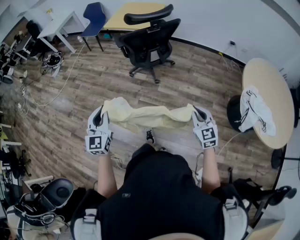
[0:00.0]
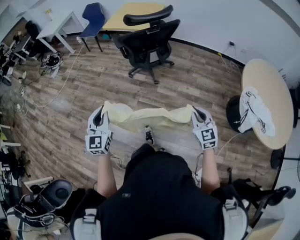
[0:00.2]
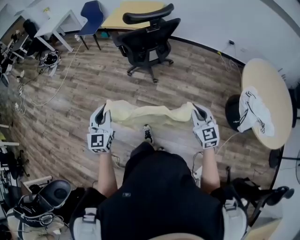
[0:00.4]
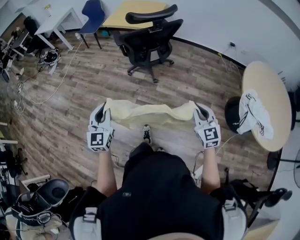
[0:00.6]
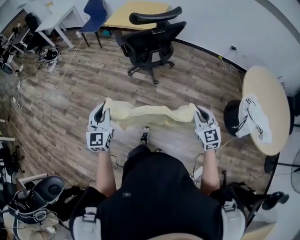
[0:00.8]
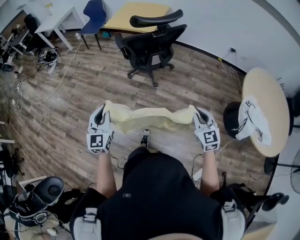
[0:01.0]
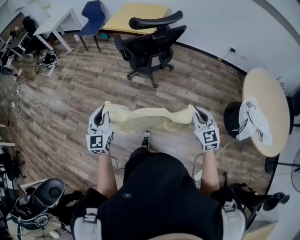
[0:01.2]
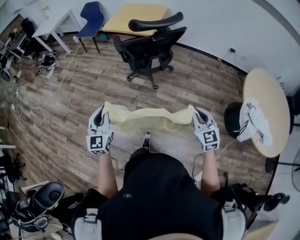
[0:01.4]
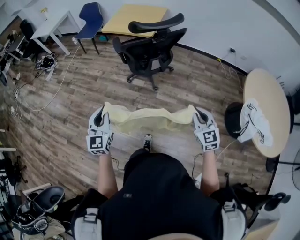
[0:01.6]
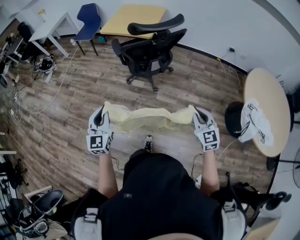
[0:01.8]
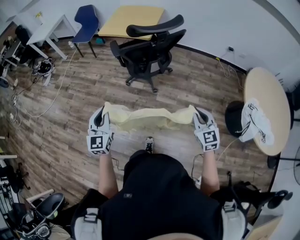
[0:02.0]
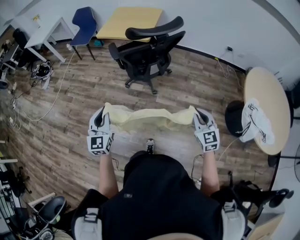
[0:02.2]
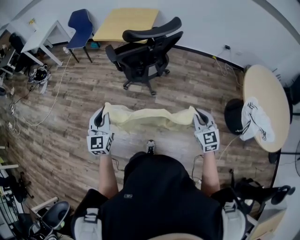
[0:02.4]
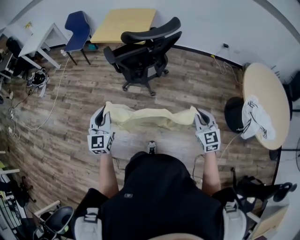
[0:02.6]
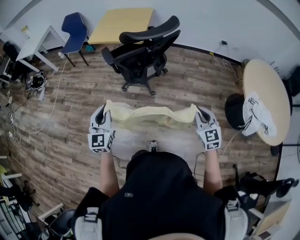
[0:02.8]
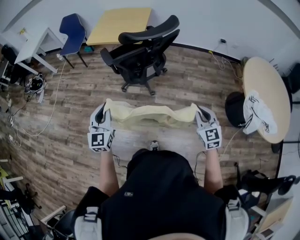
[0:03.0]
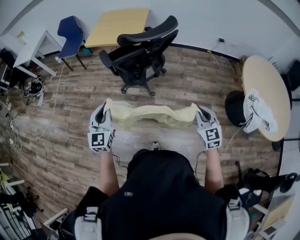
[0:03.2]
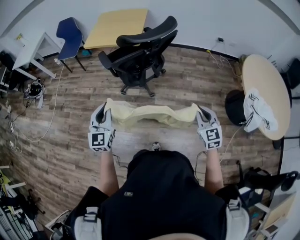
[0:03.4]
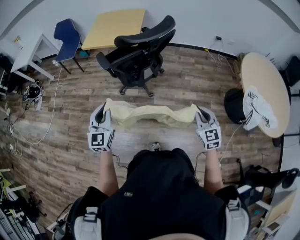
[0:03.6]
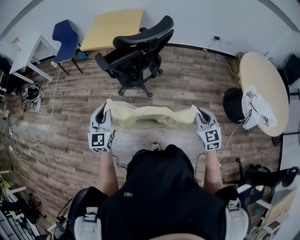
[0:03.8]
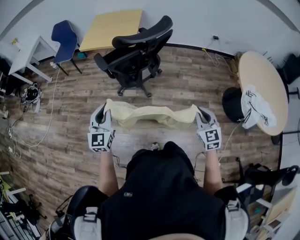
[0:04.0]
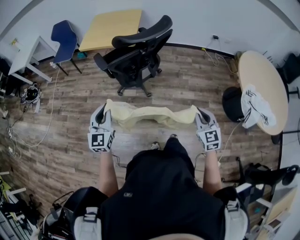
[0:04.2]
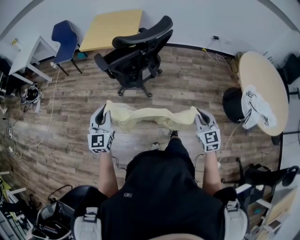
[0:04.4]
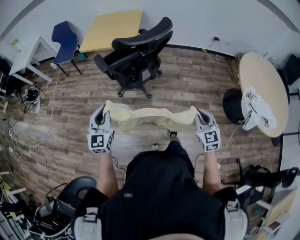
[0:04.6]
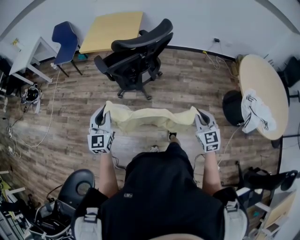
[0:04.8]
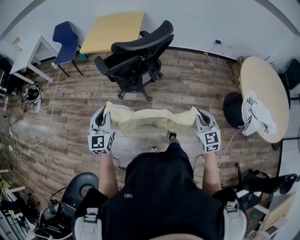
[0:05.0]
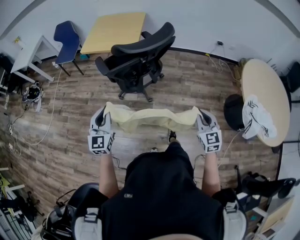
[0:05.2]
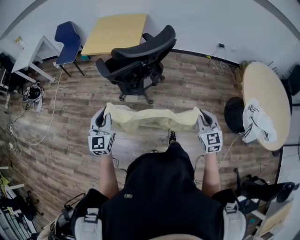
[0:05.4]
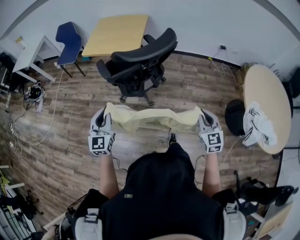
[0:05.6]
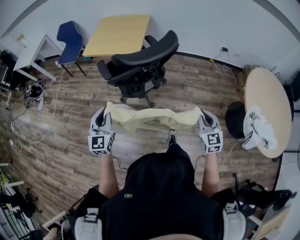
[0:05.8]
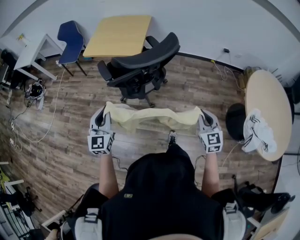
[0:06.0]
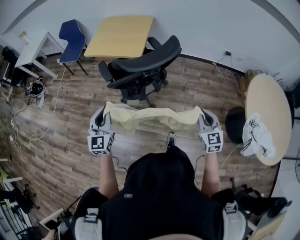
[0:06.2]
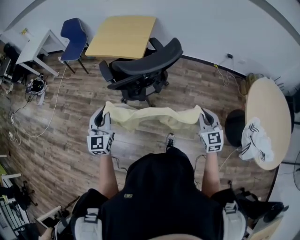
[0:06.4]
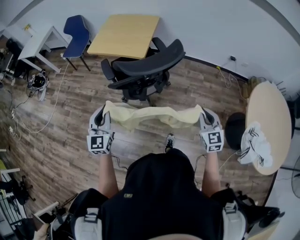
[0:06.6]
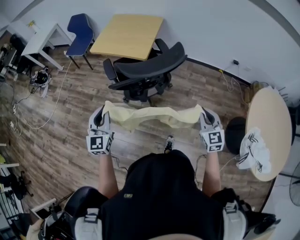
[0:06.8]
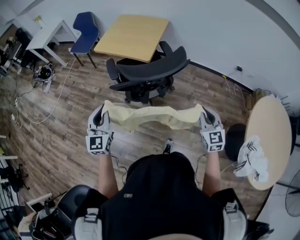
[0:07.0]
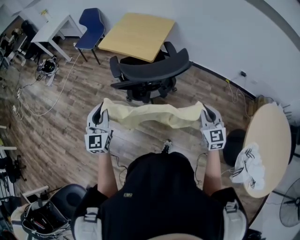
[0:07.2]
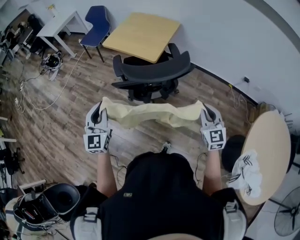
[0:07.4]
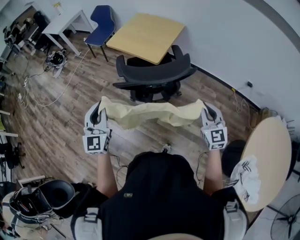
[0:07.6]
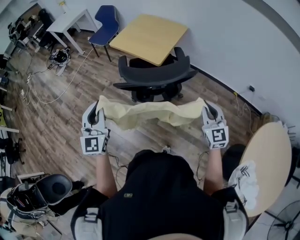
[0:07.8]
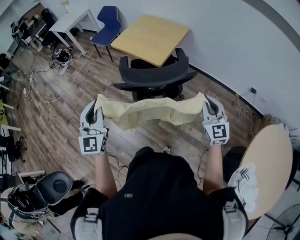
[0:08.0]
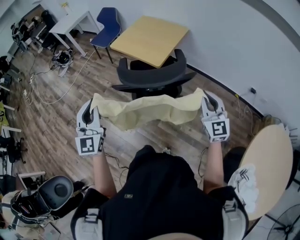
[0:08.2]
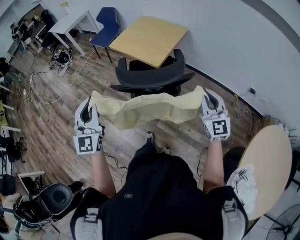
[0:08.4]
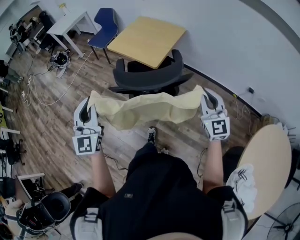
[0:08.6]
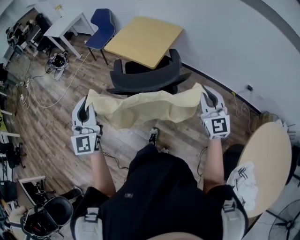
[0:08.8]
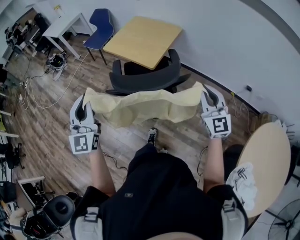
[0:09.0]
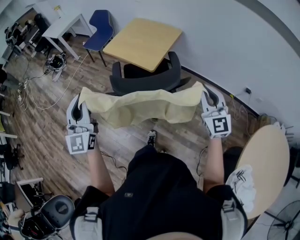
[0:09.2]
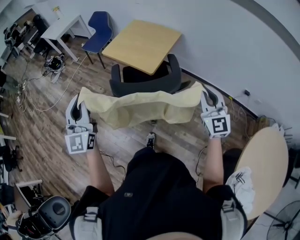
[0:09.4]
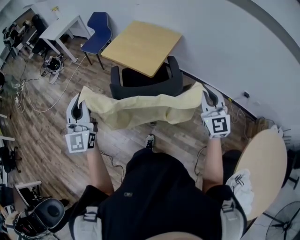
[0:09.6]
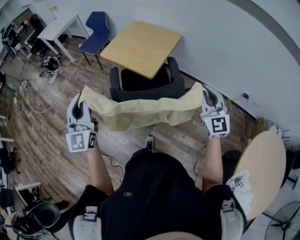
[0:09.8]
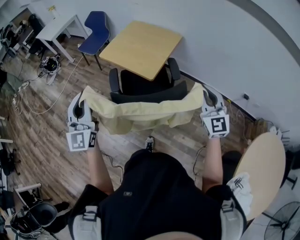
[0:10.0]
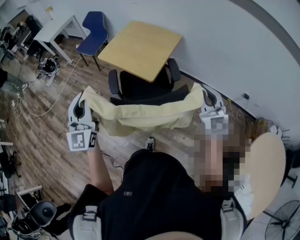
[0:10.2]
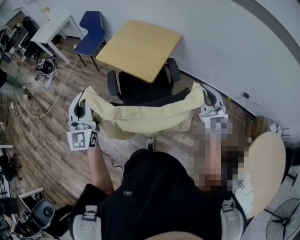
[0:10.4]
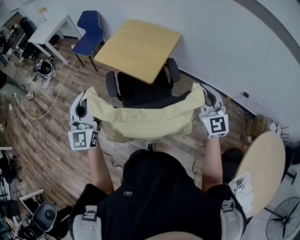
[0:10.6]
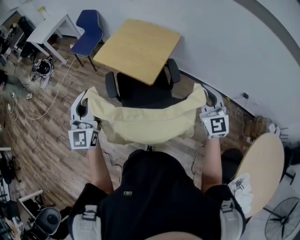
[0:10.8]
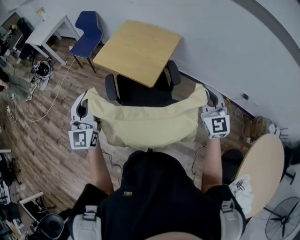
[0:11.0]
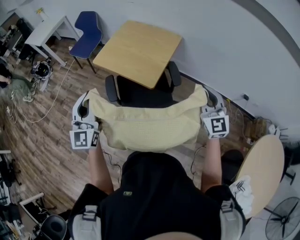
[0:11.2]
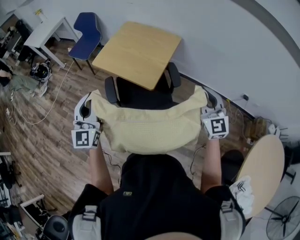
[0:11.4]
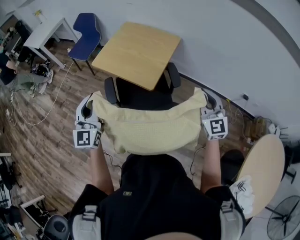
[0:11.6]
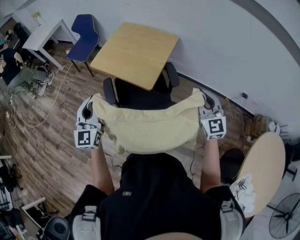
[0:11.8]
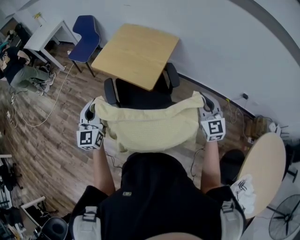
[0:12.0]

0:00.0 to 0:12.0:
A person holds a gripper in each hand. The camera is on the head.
0:00.0 to 0:01.6: Both grippers move forward, some 10 cm.
0:01.6 to 0:03.0: The right gripper travels forward by about 10 cm, while the left gripper travels forward by approximately 15 cm.
0:03.0 to 0:04.4: The grippers move only a little.
0:04.4 to 0:06.0: Both grippers travel together forward, about 15 cm.
0:06.0 to 0:07.6: The right gripper shifts approximately 15 cm forward, and changes its angle by roughly 20 degrees. The left gripper goes some 10 cm upward and to the right, and turns by approximately 20 degrees.
0:07.6 to 0:09.0: The left gripper travels upward by some 10 cm, while the right gripper is displaced upward and forward by about 15 cm.
0:09.0 to 0:10.4: The grippers both shift forward by some 15 cm.
0:10.4 to 0:12.0: The left gripper goes about 15 cm downward and forward. Meanwhile the right gripper heads downward and forward, covering about 10 cm.

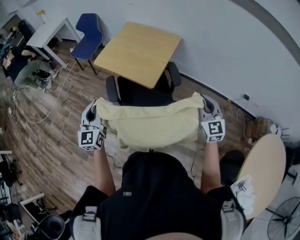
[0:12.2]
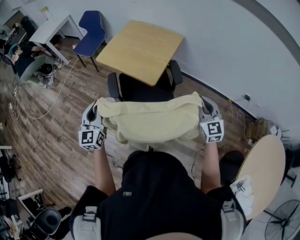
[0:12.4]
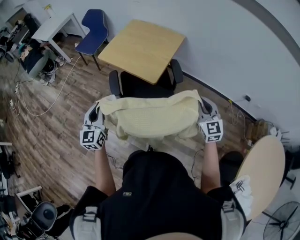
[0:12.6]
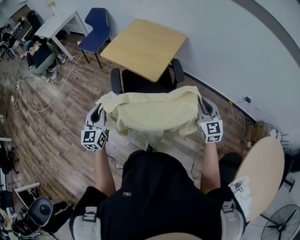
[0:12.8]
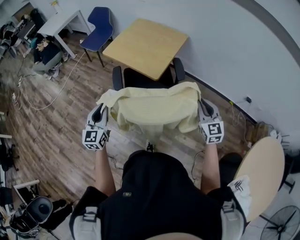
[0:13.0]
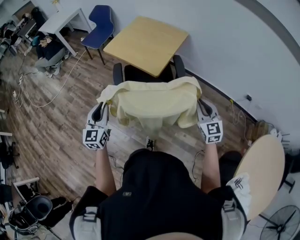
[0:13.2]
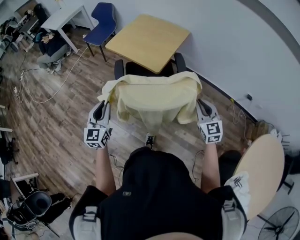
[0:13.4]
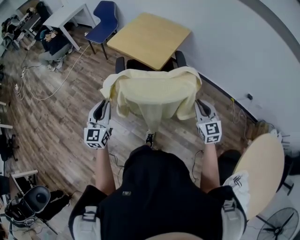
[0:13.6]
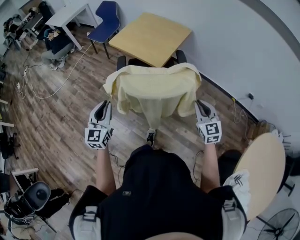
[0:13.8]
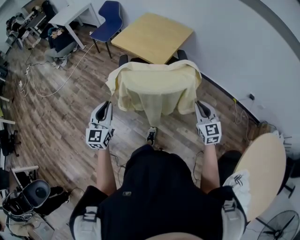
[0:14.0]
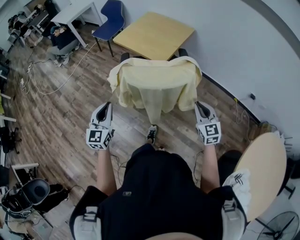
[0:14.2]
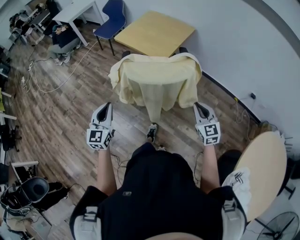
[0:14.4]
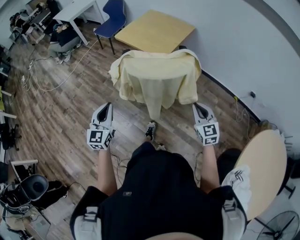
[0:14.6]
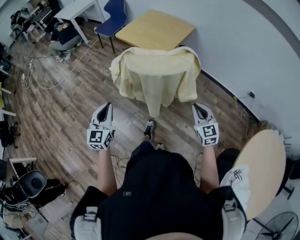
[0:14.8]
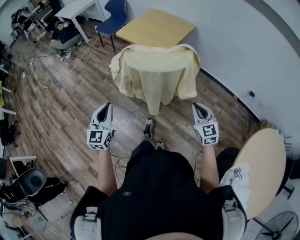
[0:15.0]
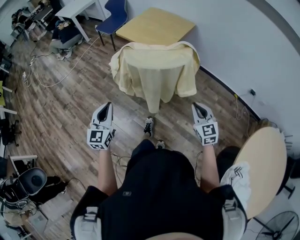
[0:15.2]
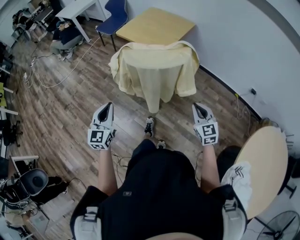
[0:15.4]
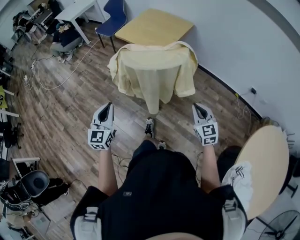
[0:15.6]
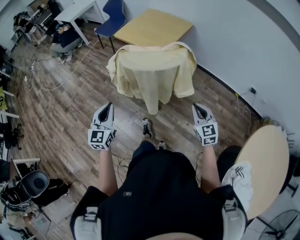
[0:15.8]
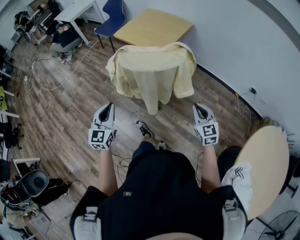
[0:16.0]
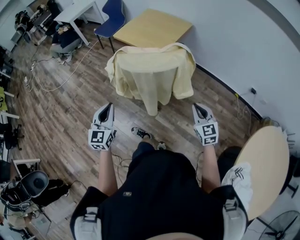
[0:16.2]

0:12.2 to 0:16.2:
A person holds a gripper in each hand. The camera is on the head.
0:12.2 to 0:13.6: The two grippers go approximately 15 cm backward.
0:13.6 to 0:14.8: Both grippers travel together backward, approximately 15 cm.
0:14.8 to 0:16.2: The grippers stay close to where they were, moving slightly.

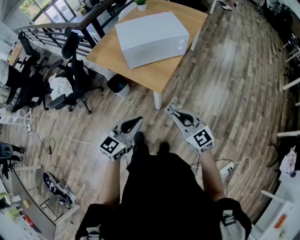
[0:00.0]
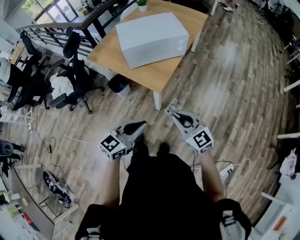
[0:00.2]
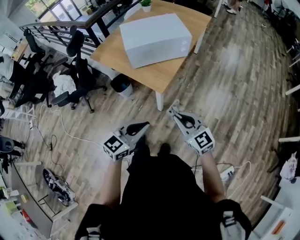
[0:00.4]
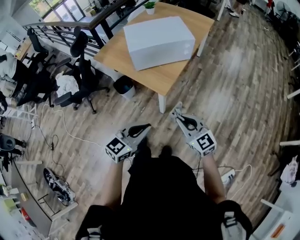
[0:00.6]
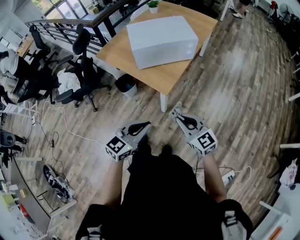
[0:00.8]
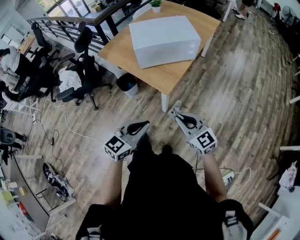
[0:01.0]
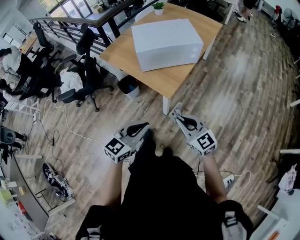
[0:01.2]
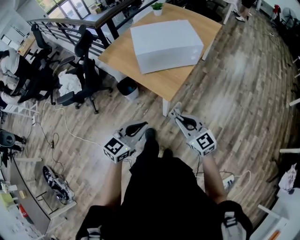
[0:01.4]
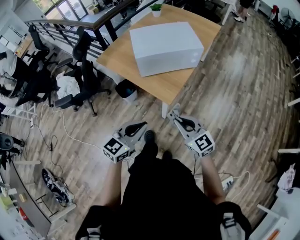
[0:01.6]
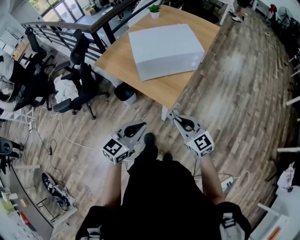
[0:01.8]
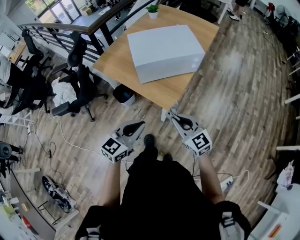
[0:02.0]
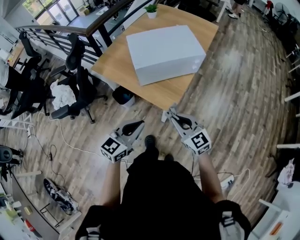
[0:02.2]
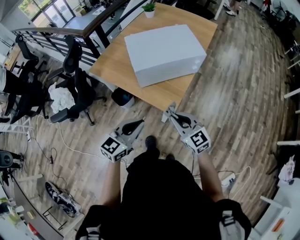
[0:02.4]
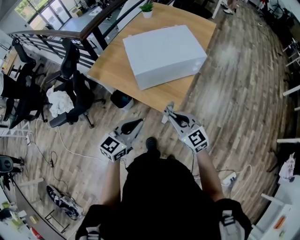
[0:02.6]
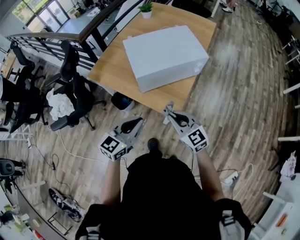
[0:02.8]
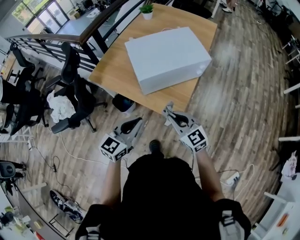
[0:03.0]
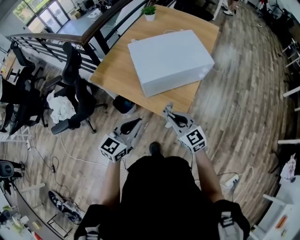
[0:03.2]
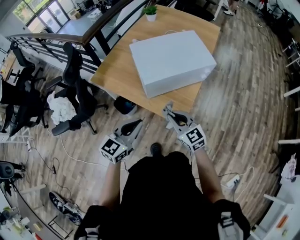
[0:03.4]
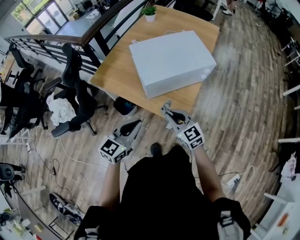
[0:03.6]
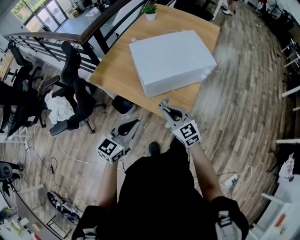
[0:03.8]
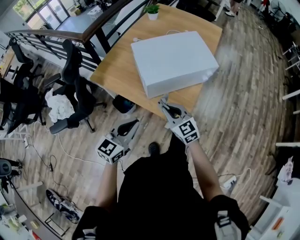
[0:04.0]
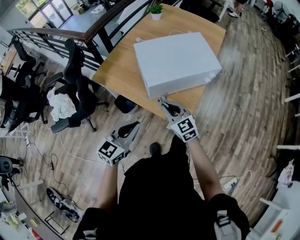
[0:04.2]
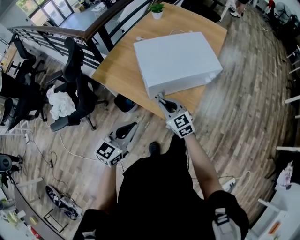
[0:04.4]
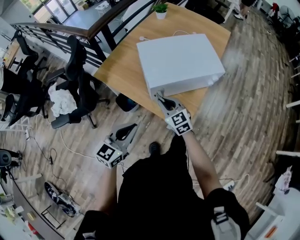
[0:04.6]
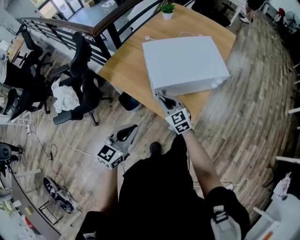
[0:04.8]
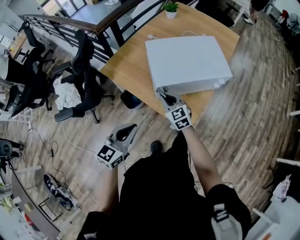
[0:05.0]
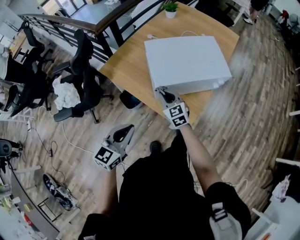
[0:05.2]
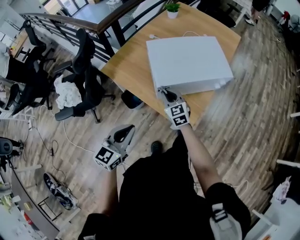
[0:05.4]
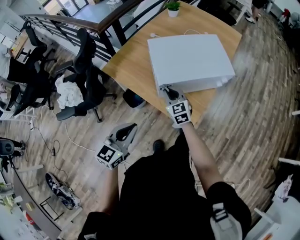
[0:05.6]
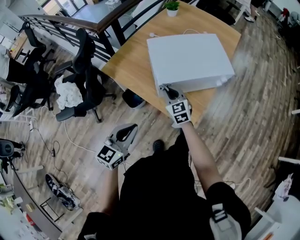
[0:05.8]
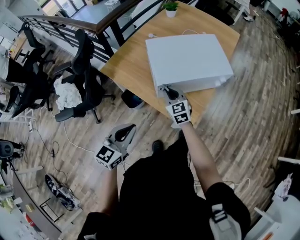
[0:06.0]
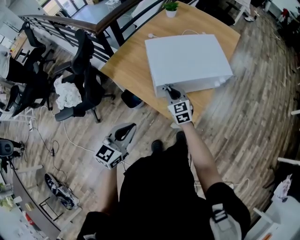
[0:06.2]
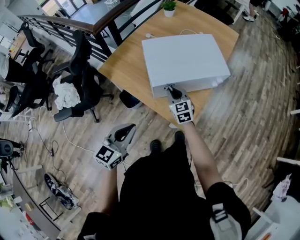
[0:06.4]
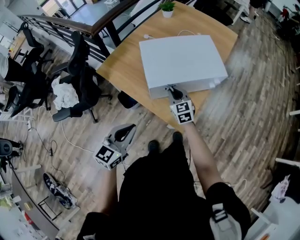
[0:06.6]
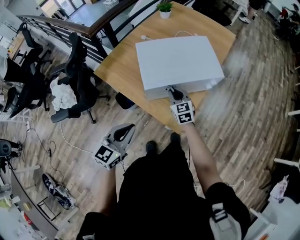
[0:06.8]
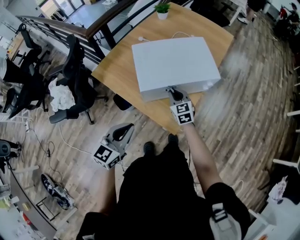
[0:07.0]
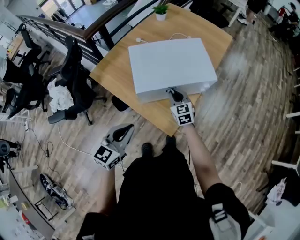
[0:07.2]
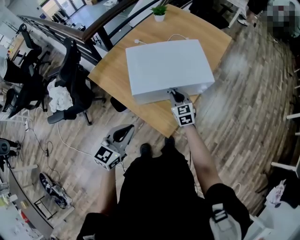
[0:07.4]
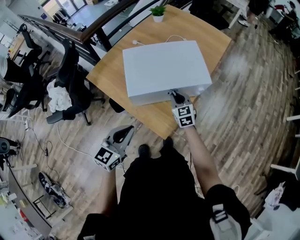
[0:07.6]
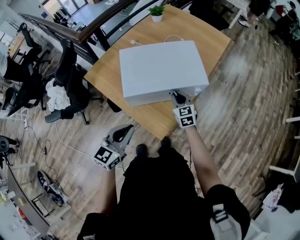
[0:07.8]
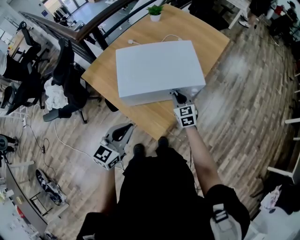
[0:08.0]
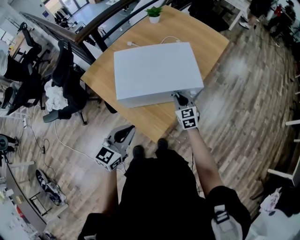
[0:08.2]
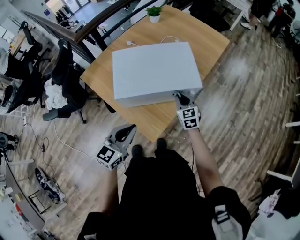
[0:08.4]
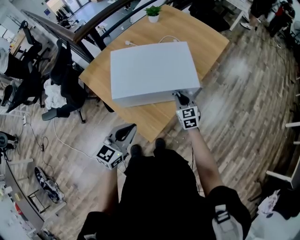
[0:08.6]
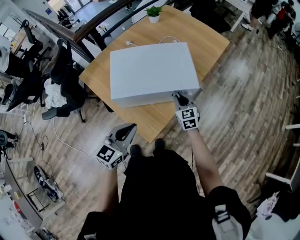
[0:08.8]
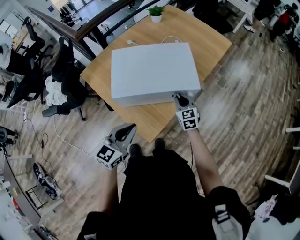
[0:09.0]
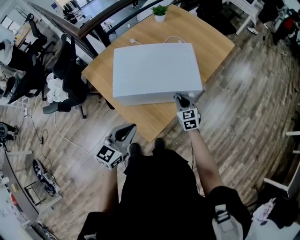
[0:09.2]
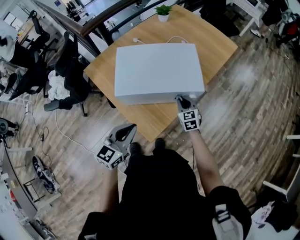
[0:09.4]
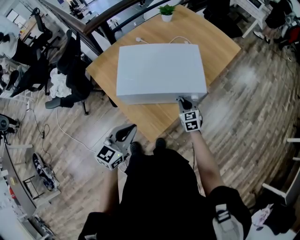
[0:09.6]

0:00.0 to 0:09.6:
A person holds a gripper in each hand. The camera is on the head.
0:00.0 to 0:01.6: The right gripper ends up some 5 cm from where it was.
0:01.6 to 0:03.2: Both grippers move forward and to the left, about 25 cm.
0:03.2 to 0:04.8: The right gripper shifts about 15 cm forward, to the left and downward, while the left gripper heads to the left, covering some 5 cm.
0:04.8 to 0:06.4: The right gripper heads forward, covering approximately 5 cm.
0:06.4 to 0:08.0: The left gripper goes about 15 cm to the right and forward, while the right gripper travels to the right by some 20 cm.
0:08.0 to 0:09.6: The right gripper travels downward and to the right by about 10 cm. The left gripper goes some 5 cm to the right.
